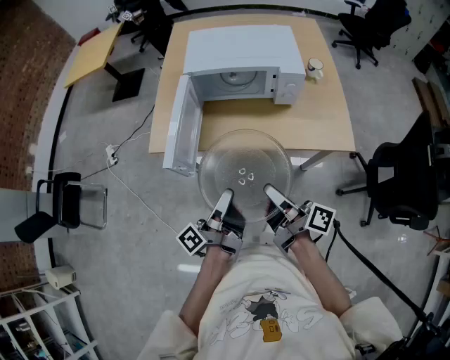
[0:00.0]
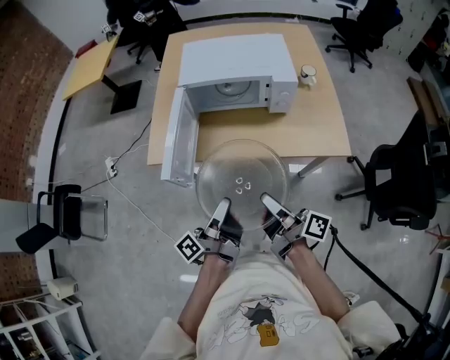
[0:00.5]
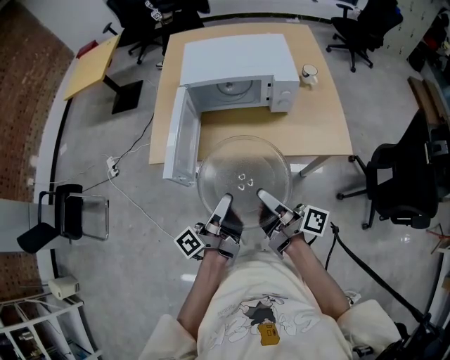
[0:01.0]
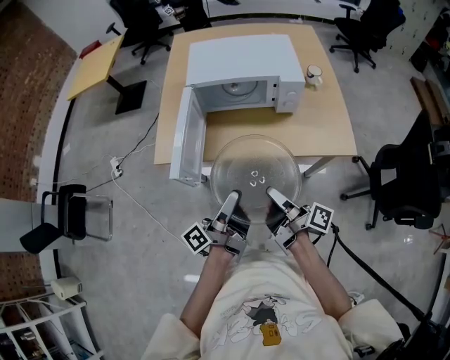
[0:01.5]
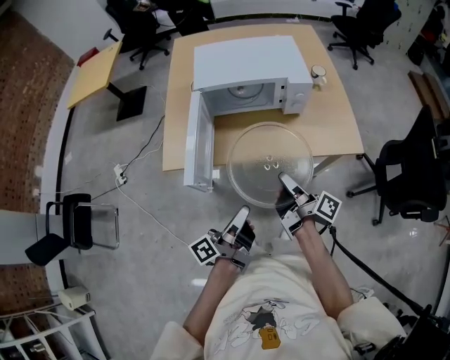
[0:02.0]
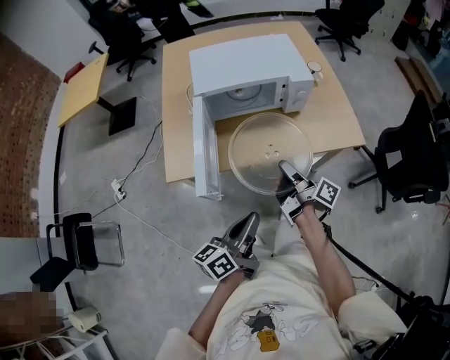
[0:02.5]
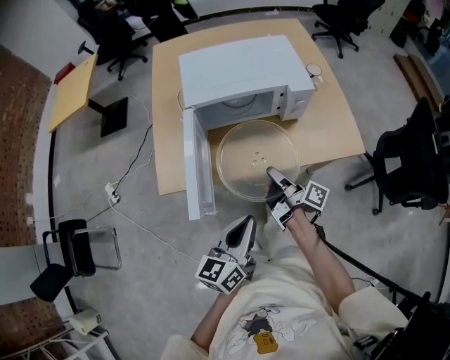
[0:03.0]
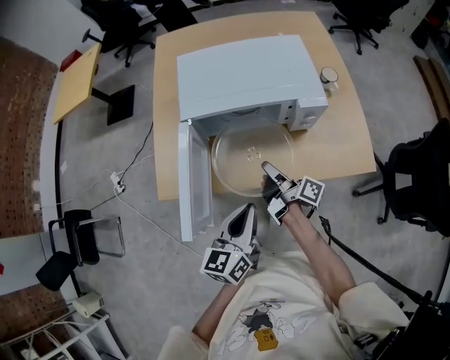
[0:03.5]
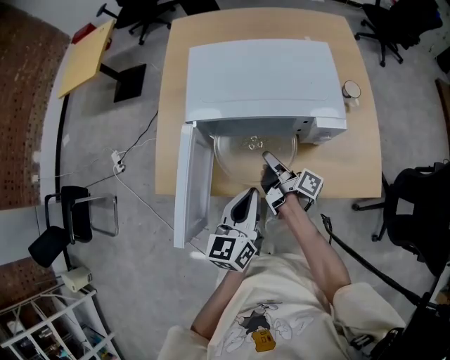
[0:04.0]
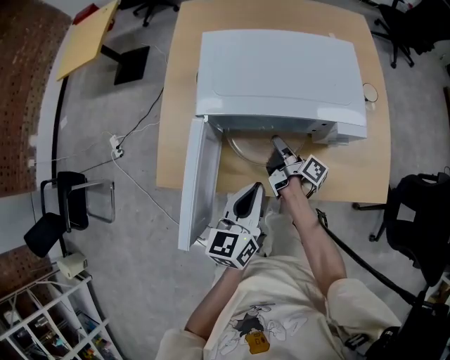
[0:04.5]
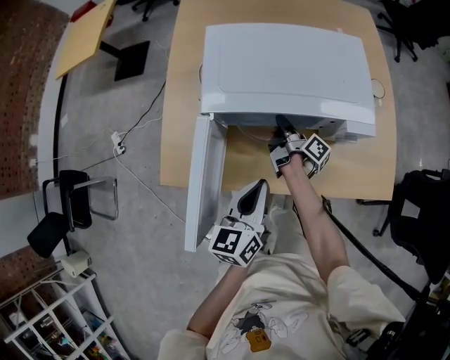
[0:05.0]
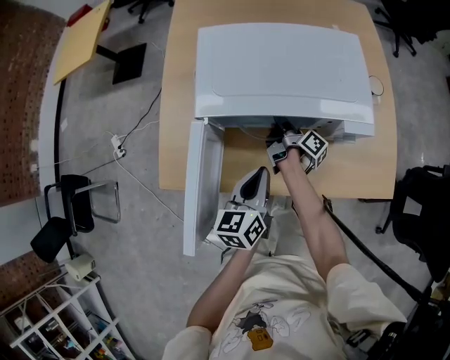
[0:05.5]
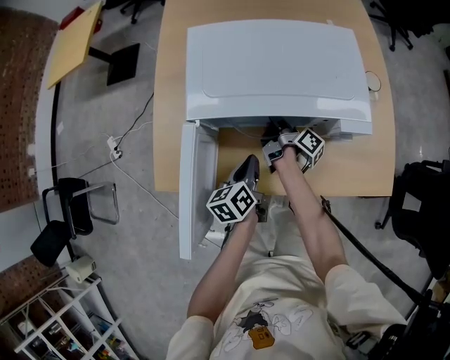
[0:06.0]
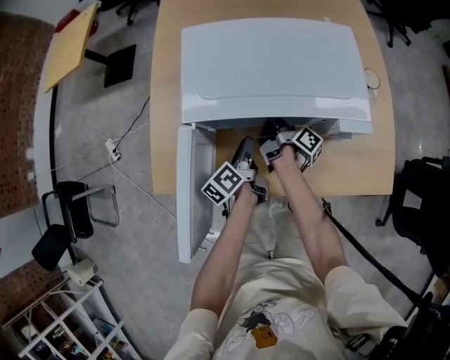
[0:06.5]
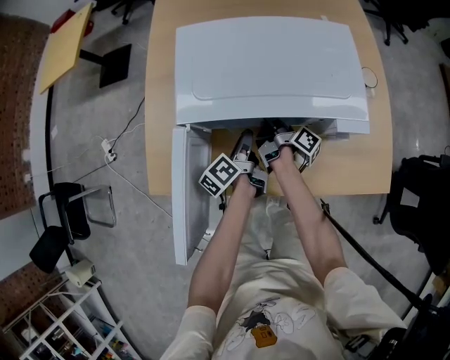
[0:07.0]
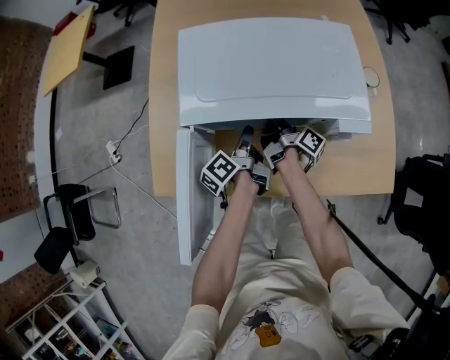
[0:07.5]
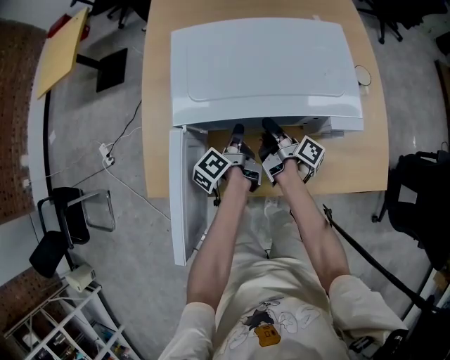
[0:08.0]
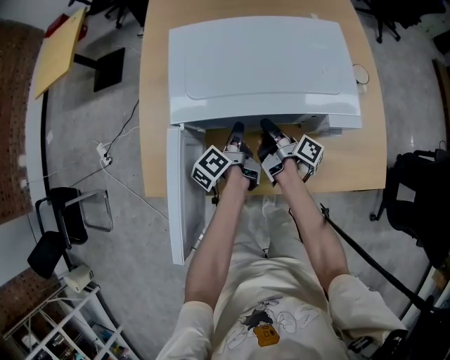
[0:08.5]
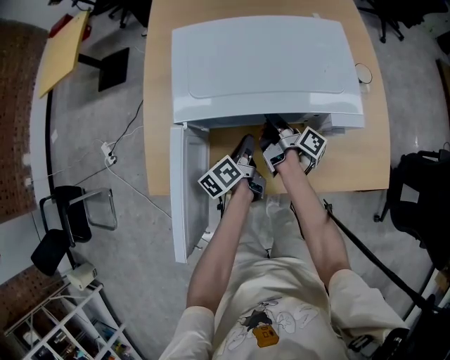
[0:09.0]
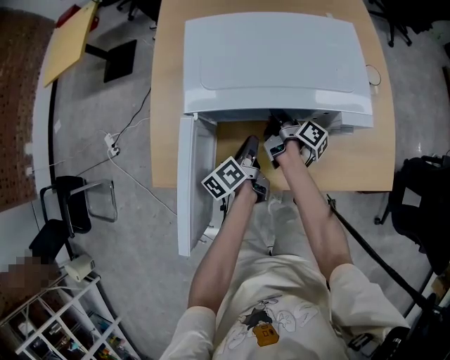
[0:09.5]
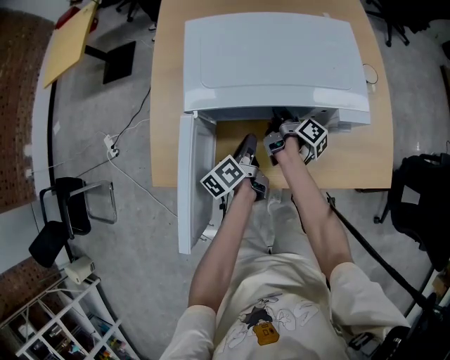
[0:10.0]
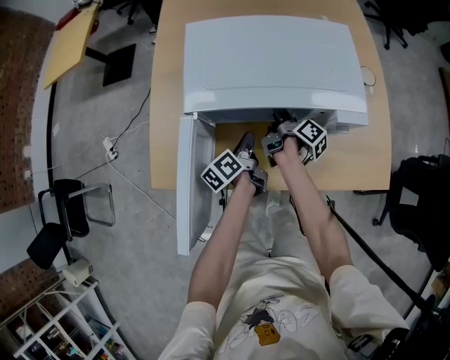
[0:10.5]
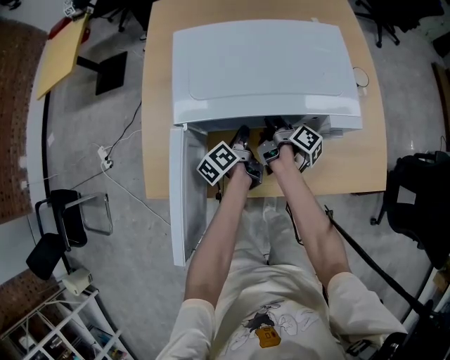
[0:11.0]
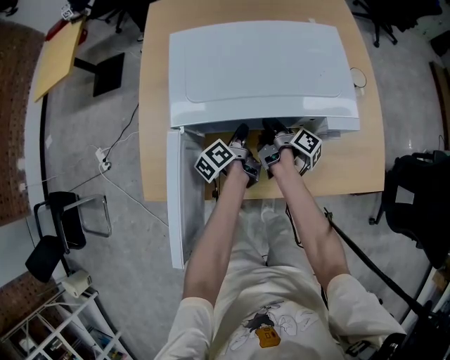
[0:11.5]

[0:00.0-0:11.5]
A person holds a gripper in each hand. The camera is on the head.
0:00.0 to 0:02.0: The left gripper opens, then closes once more.
0:02.0 to 0:04.0: The left gripper ends up about 25 cm from where it was, and rolls clockwise, seen from behind, by approximately 60 degrees.
0:04.0 to 0:06.0: The left gripper travels downward by roughly 15 cm, and swivels some 30 degrees.
0:06.0 to 0:07.5: The left gripper moves some 10 cm, and turns by roughly 30 degrees.
0:07.5 to 0:09.5: The left gripper ends up approximately 5 cm from where it was.
0:09.5 to 0:11.5: The left gripper changes place by some 10 cm.

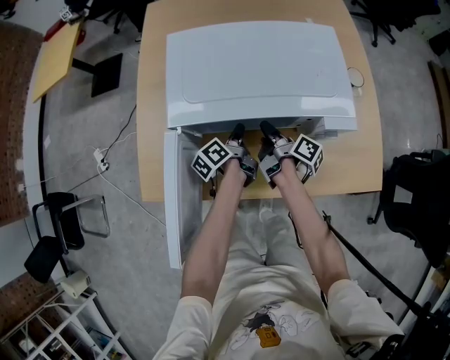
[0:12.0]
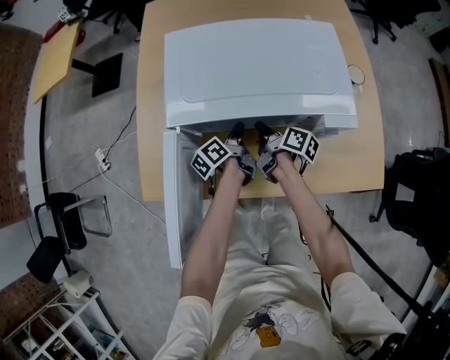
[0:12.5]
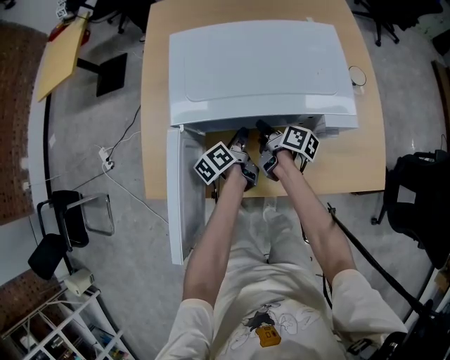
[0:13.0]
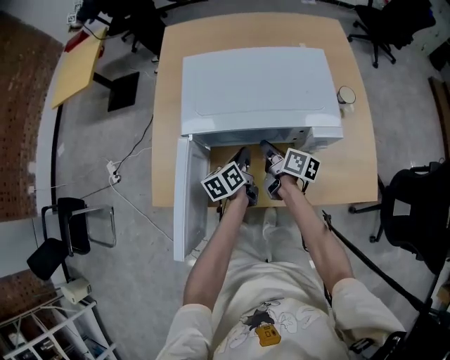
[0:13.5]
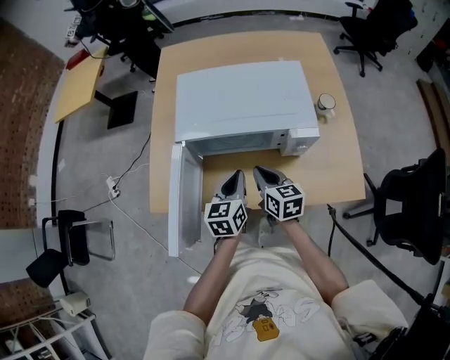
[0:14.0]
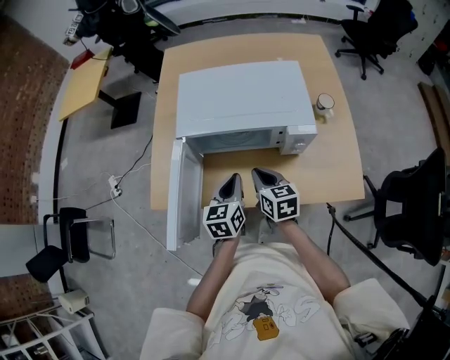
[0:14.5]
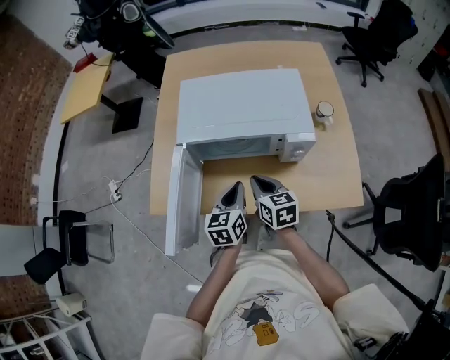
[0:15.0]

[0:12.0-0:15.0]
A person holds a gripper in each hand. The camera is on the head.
0:12.0 to 0:13.5: The left gripper travels upward by approximately 5 cm, and swivels about 30 degrees.
0:13.5 to 0:15.0: The left gripper shifts by approximately 15 cm, and turns by some 30 degrees.
